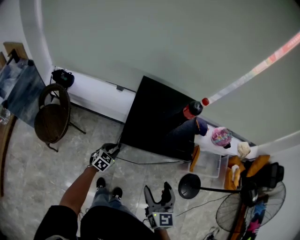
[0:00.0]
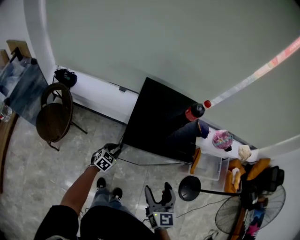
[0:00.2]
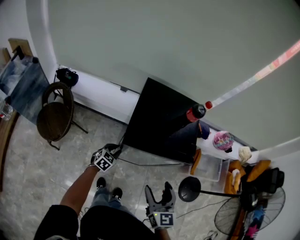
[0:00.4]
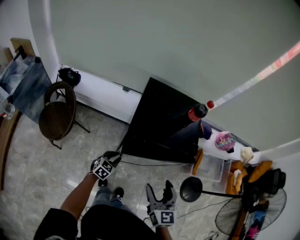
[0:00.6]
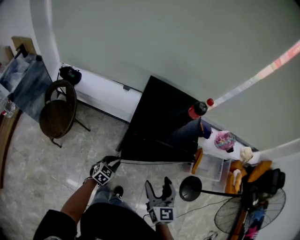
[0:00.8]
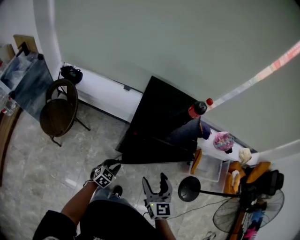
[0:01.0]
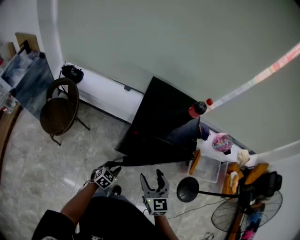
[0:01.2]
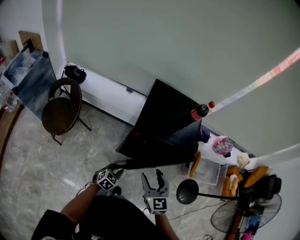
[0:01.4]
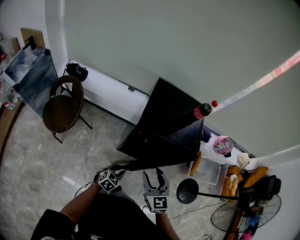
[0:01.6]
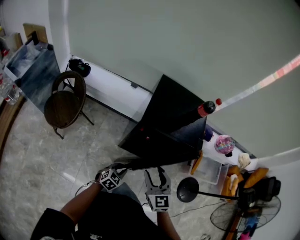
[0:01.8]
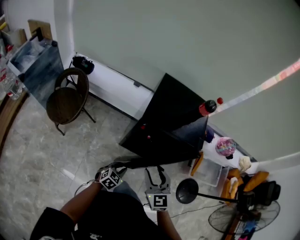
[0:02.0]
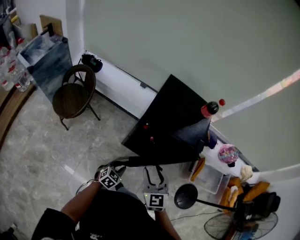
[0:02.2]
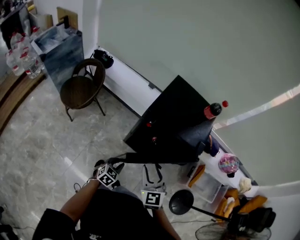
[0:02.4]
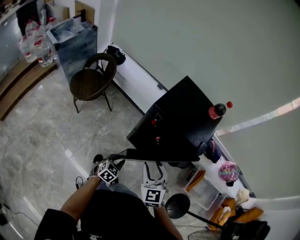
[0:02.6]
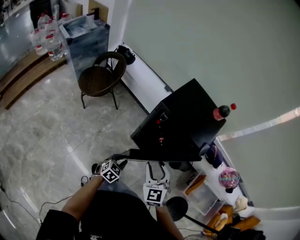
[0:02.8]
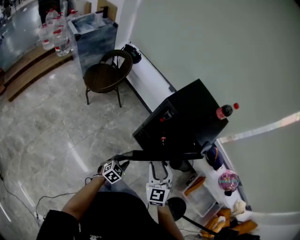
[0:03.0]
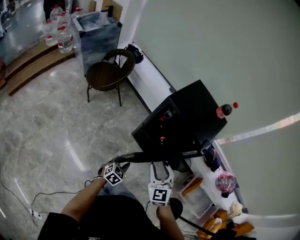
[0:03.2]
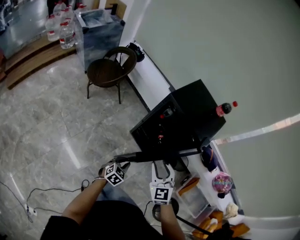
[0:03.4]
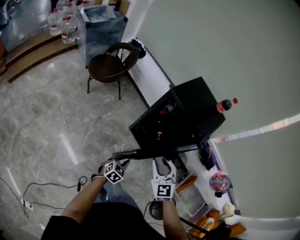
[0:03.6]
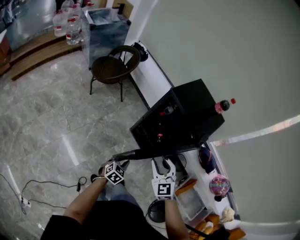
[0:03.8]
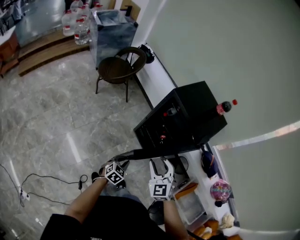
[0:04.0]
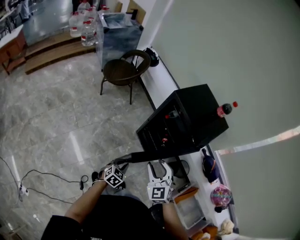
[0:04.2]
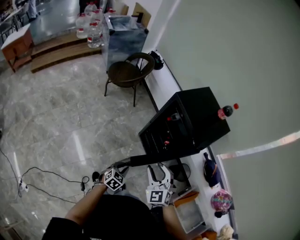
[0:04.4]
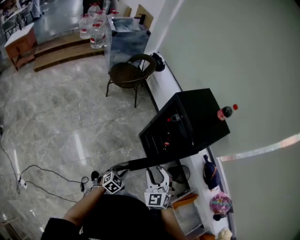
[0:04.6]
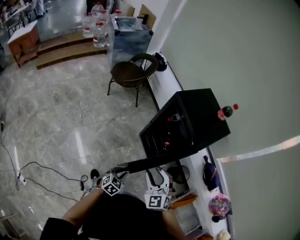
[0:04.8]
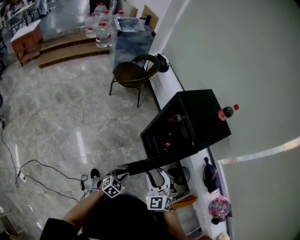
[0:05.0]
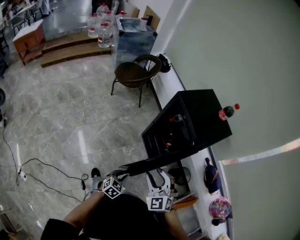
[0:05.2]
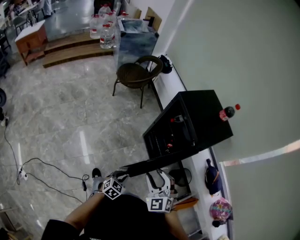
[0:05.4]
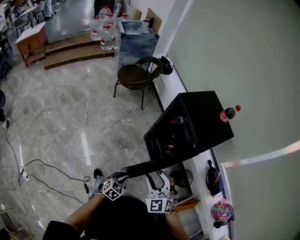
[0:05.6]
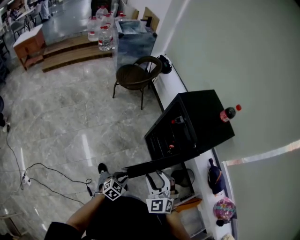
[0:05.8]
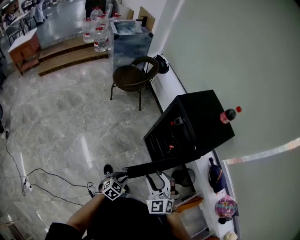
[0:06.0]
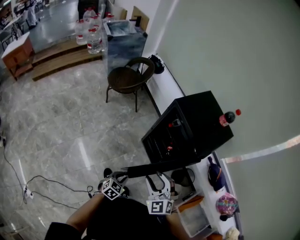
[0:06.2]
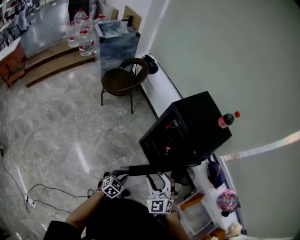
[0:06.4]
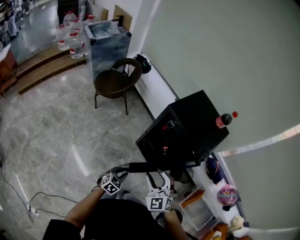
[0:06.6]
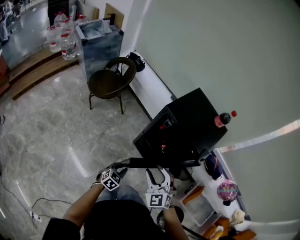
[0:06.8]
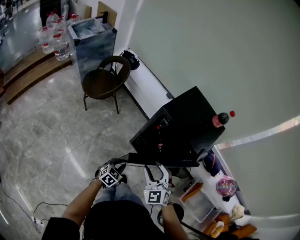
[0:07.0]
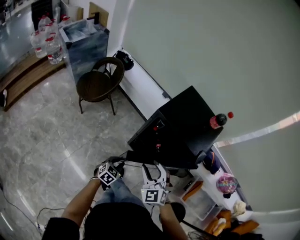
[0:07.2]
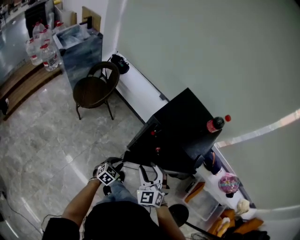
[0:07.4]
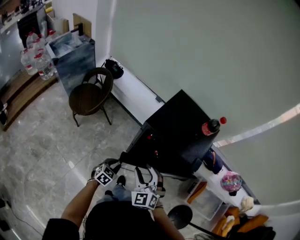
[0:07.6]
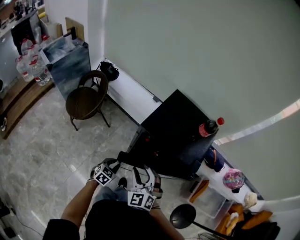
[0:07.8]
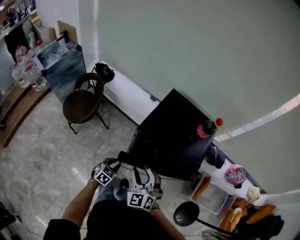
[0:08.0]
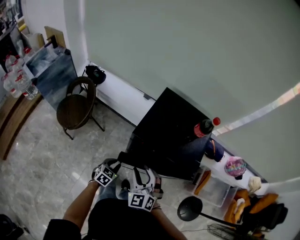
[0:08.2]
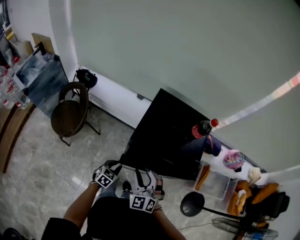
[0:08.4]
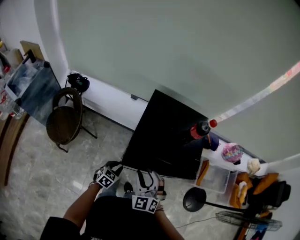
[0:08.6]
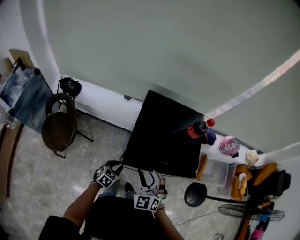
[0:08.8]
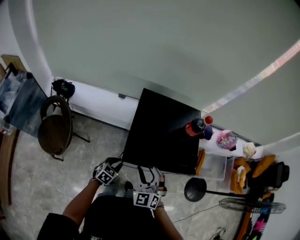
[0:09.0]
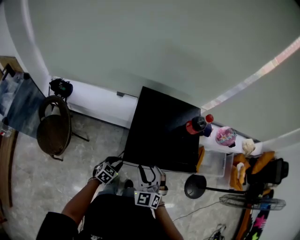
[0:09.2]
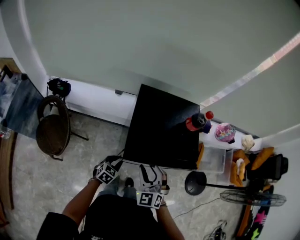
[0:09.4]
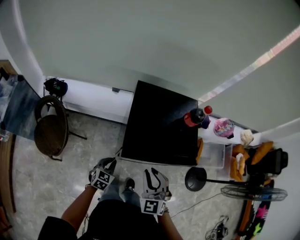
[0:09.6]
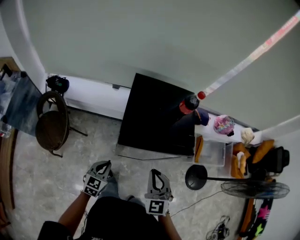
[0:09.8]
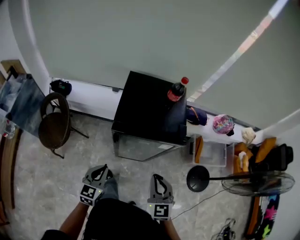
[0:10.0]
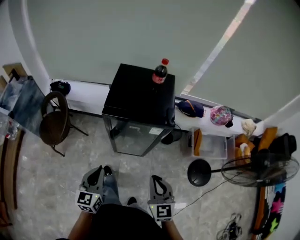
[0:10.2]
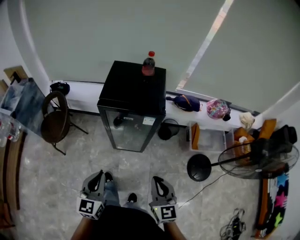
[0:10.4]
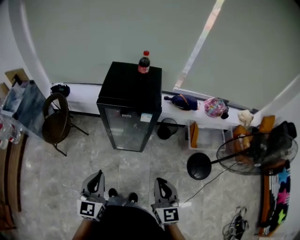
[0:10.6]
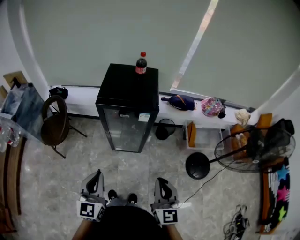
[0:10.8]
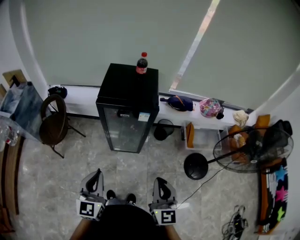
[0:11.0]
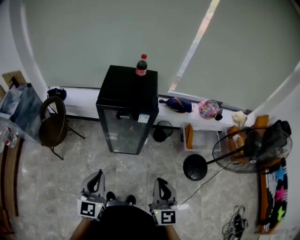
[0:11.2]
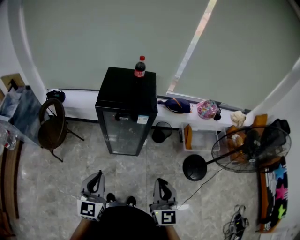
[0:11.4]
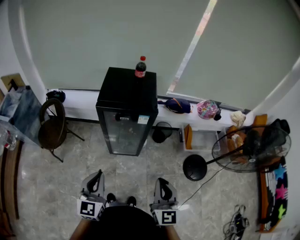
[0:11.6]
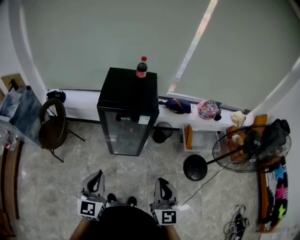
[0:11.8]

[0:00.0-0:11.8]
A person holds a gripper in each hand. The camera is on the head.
0:00.0 to 0:01.4: The right gripper moves to the left, roughly 5 cm. The left gripper travels backward and to the right by approximately 15 cm.
0:01.4 to 0:03.0: The right gripper shifts by about 10 cm, and changes its angle by about 30 degrees; the left gripper ends up about 15 cm from where it was, and changes its angle by some 30 degrees.
0:03.0 to 0:04.4: Both grippers move backward and to the right, about 10 cm. The right gripper rotates some 30 degrees. Meanwhile the left gripper swivels roughly 20 degrees.
0:06.0 to 0:07.4: The right gripper moves some 20 cm, and turns by about 30 degrees. The left gripper shifts by some 30 cm, and swivels approximately 20 degrees.
0:07.4 to 0:08.8: The left gripper moves approximately 15 cm, and turns by about 30 degrees; the right gripper moves roughly 15 cm, and changes its angle by about 30 degrees.
0:08.8 to 0:10.4: The right gripper heads backward and to the right, covering approximately 35 cm, changes its angle by roughly 40 degrees, and closes its fingers. Meanwhile the left gripper moves backward and upward, about 40 cm, and turns by some 40 degrees.
0:10.4 to 0:11.8: The left gripper ends up roughly 5 cm from where it was; the right gripper is displaced backward and upward by roughly 10 cm.

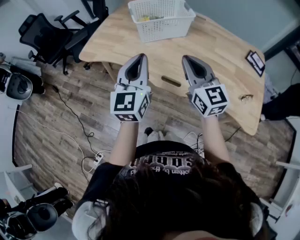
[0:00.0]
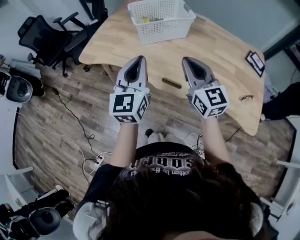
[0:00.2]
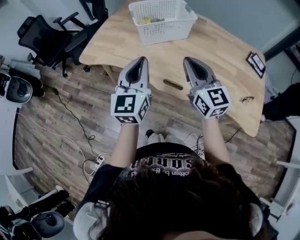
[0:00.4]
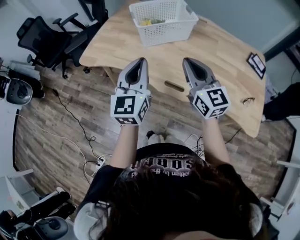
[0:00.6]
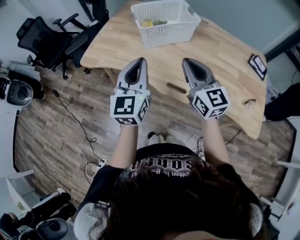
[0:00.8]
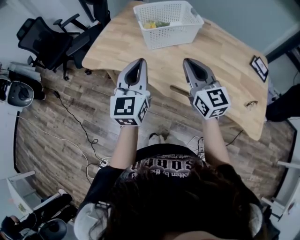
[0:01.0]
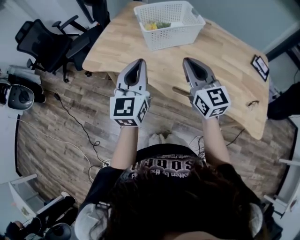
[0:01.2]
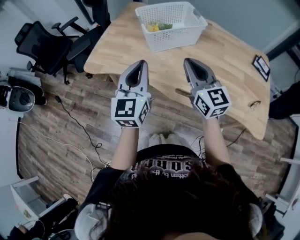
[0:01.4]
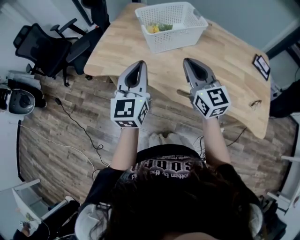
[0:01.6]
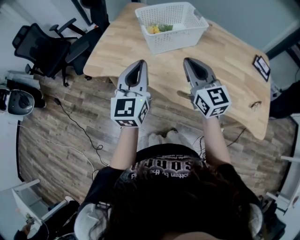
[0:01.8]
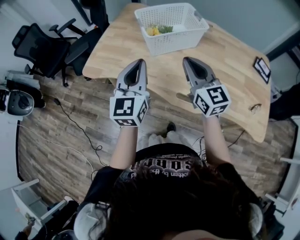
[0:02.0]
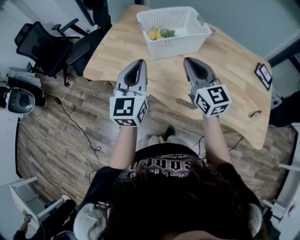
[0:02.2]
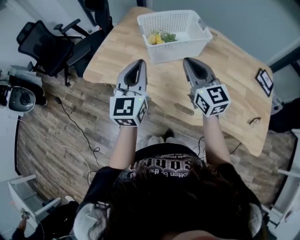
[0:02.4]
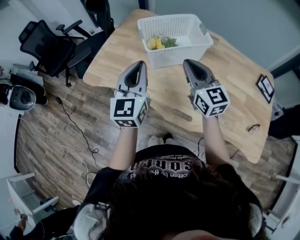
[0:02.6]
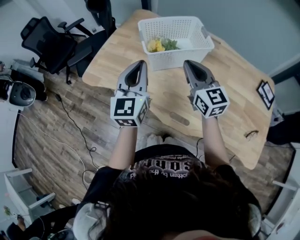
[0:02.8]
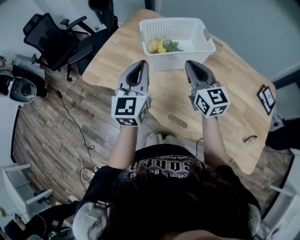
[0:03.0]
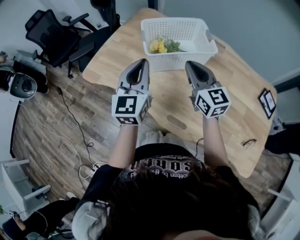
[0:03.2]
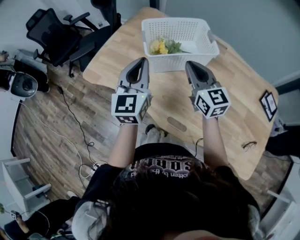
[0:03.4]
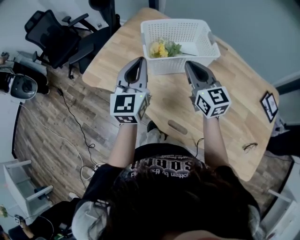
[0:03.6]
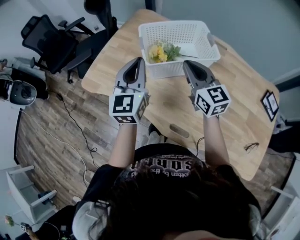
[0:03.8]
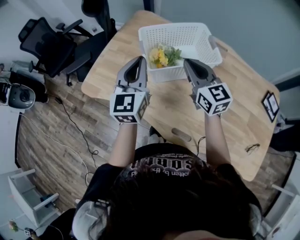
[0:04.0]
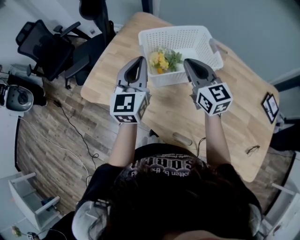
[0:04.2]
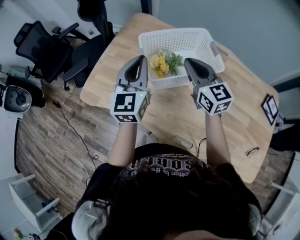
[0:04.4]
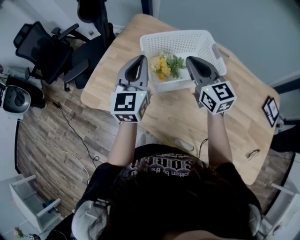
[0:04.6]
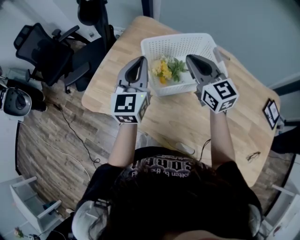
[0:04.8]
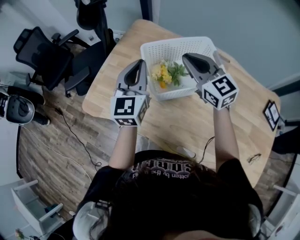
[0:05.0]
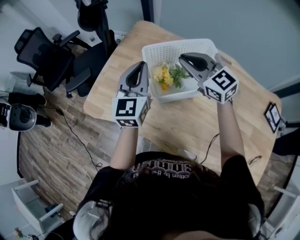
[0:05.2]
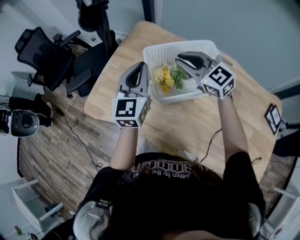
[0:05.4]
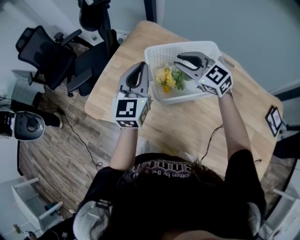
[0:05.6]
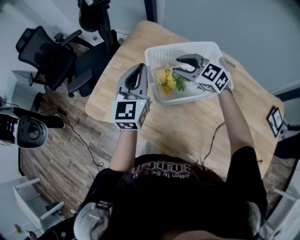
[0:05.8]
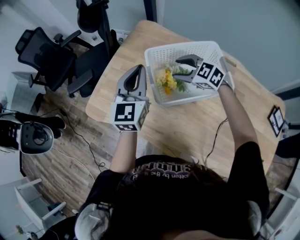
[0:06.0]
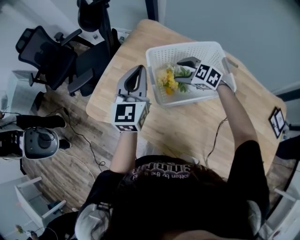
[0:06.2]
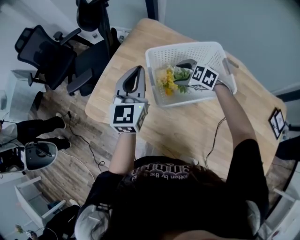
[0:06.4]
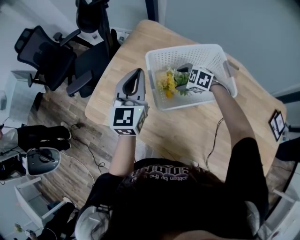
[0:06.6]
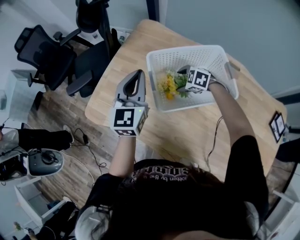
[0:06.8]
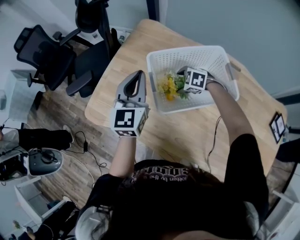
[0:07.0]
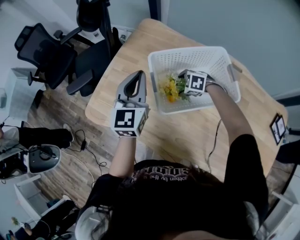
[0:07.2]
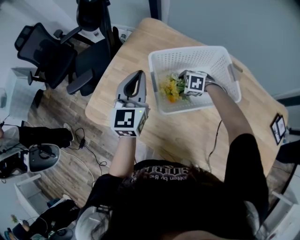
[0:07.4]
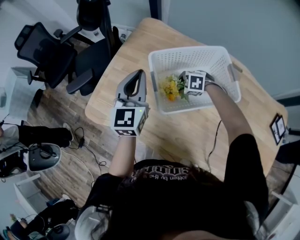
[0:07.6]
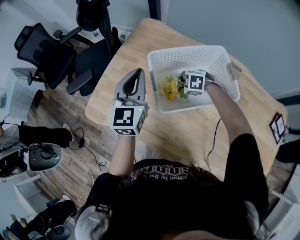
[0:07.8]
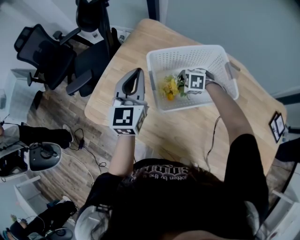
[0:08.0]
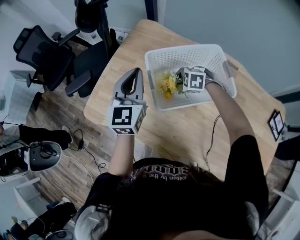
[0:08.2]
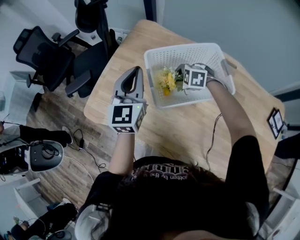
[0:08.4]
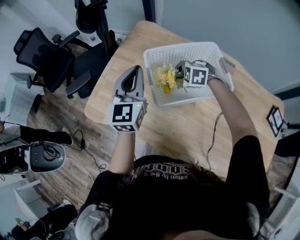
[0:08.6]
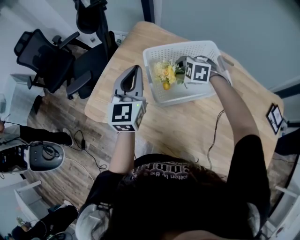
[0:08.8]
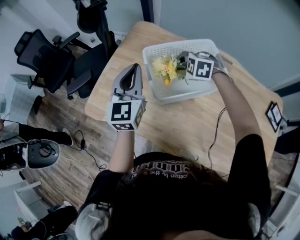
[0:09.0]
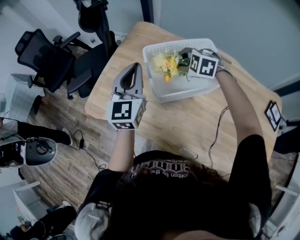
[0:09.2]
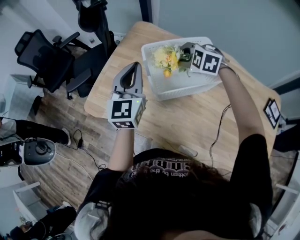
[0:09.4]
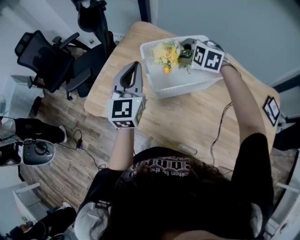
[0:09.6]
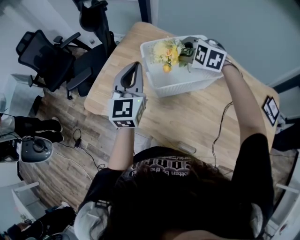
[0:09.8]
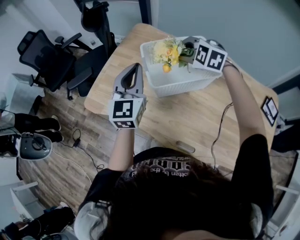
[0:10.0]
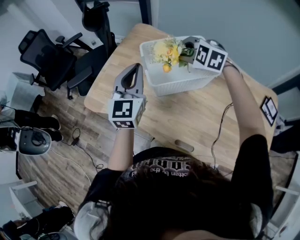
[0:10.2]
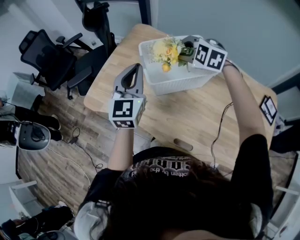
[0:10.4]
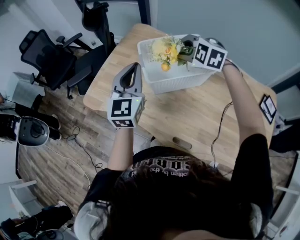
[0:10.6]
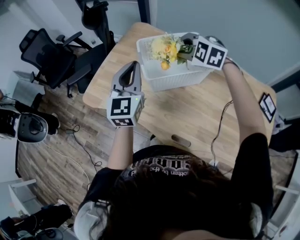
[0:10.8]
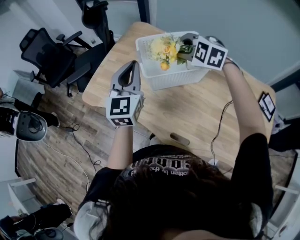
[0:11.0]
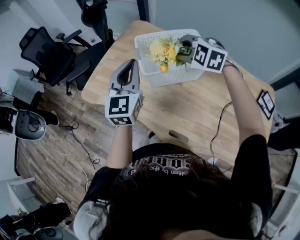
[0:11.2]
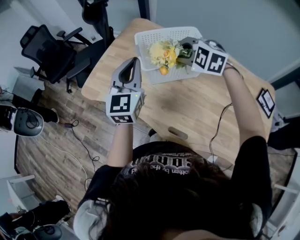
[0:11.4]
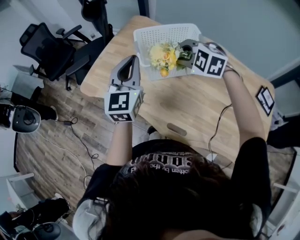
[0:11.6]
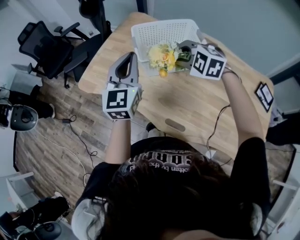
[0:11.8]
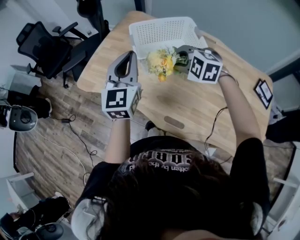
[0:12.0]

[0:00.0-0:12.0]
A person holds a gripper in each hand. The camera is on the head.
0:00.0 to 0:01.6: Both grippers move forward and to the left, roughly 10 cm.
0:01.6 to 0:03.0: Both grippers move forward and to the right, about 15 cm.
0:03.0 to 0:04.4: Both grippers move forward, approximately 15 cm.
0:04.4 to 0:06.0: The left gripper moves forward, about 10 cm. The right gripper moves forward and downward, about 15 cm, points its fingers some 30 degrees further downward, and opens its fingers.
0:06.0 to 0:07.6: The right gripper travels downward by some 20 cm, and angles its fingers downward, by some 30 degrees.
0:07.6 to 0:09.0: The left gripper moves approximately 5 cm. The right gripper travels upward by about 15 cm.
0:09.0 to 0:10.4: The left gripper shifts some 10 cm backward; the right gripper is displaced upward and backward by approximately 15 cm.
0:10.4 to 0:12.0: The left gripper moves backward, some 10 cm. Meanwhile the right gripper shifts about 15 cm backward.
